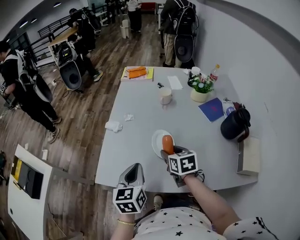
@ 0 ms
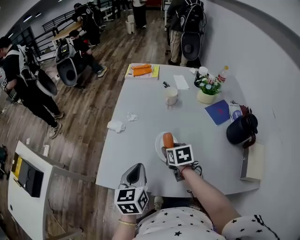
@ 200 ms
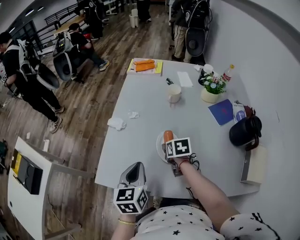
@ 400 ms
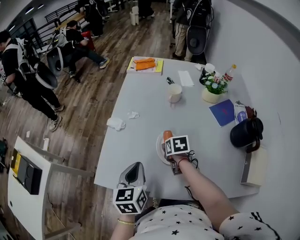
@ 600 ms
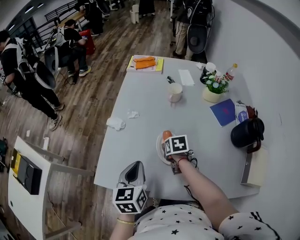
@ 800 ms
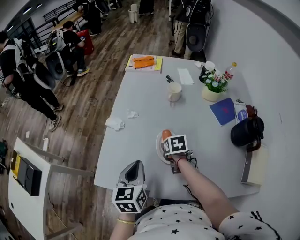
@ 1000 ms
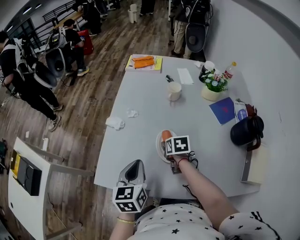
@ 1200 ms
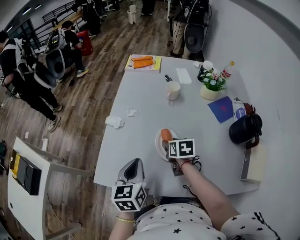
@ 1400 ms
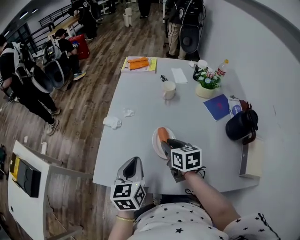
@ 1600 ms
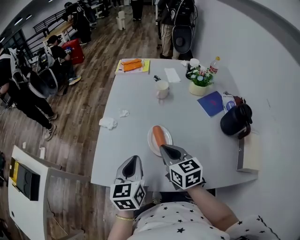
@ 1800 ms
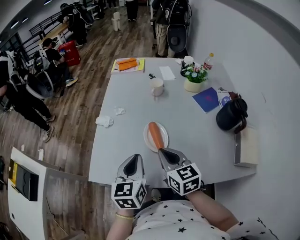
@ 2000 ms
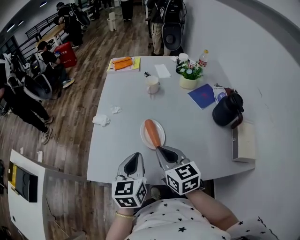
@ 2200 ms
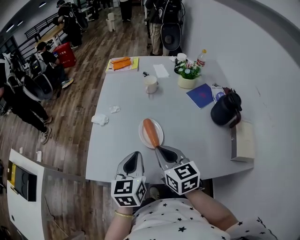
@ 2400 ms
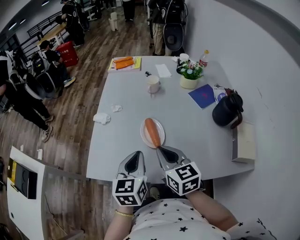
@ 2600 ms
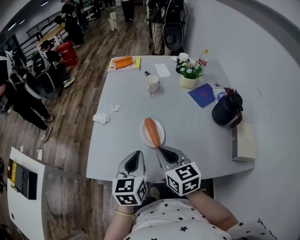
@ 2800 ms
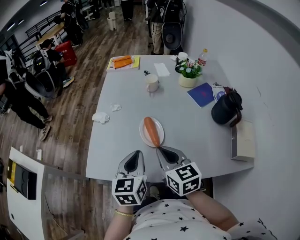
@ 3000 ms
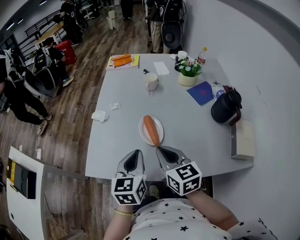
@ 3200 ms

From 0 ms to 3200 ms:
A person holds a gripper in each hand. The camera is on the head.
From 0 ms to 1600 ms: The right gripper goes downward and returns, approximately 10 cm each way, and closes up.
From 1600 ms to 3200 ms: The right gripper moves backward and upward, roughly 15 cm, and closes up, while the left gripper moves to the right, about 5 cm.

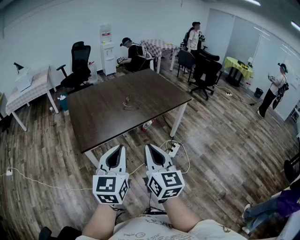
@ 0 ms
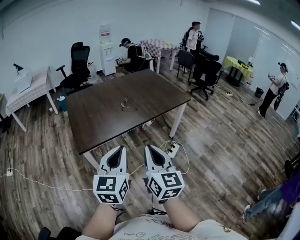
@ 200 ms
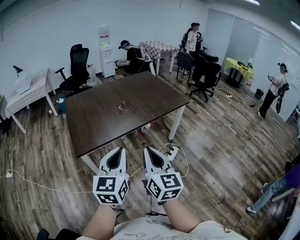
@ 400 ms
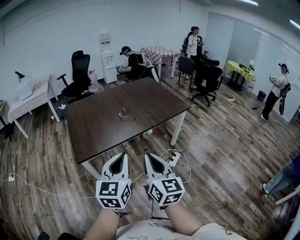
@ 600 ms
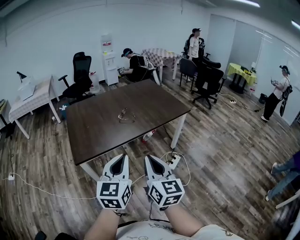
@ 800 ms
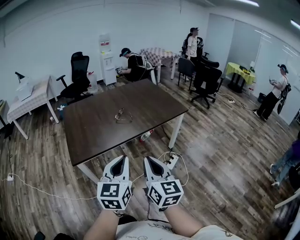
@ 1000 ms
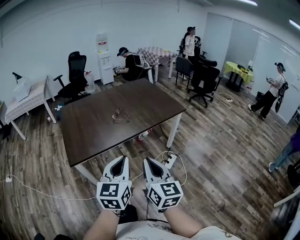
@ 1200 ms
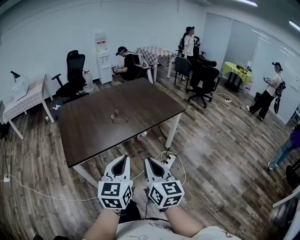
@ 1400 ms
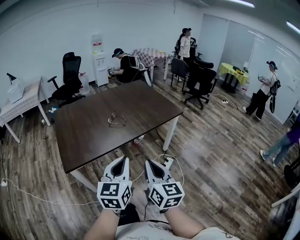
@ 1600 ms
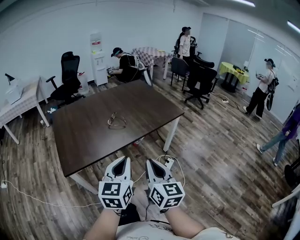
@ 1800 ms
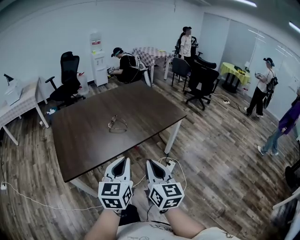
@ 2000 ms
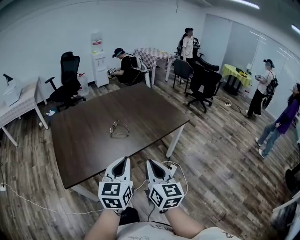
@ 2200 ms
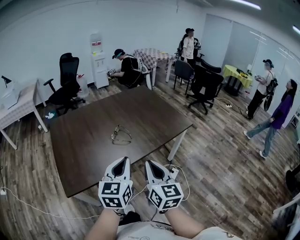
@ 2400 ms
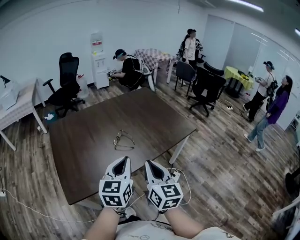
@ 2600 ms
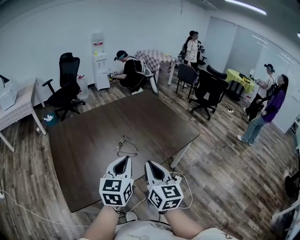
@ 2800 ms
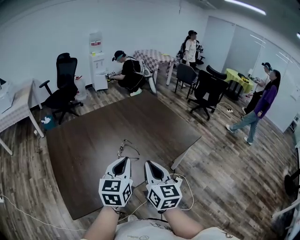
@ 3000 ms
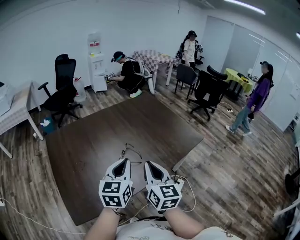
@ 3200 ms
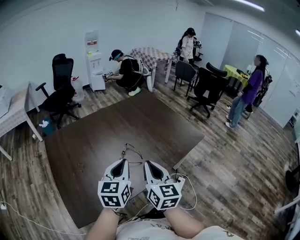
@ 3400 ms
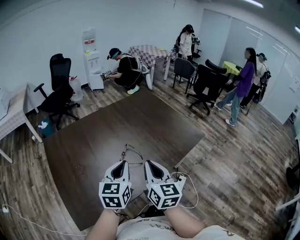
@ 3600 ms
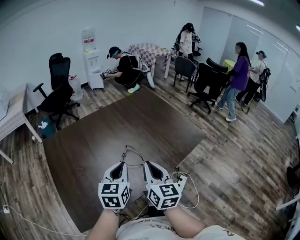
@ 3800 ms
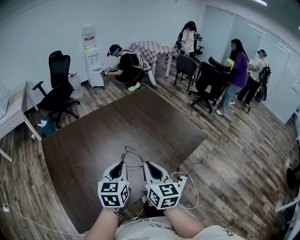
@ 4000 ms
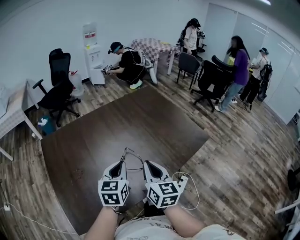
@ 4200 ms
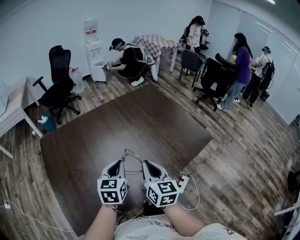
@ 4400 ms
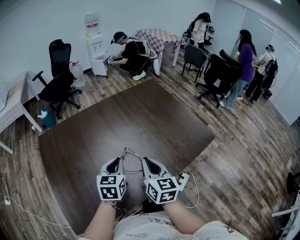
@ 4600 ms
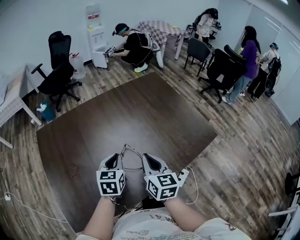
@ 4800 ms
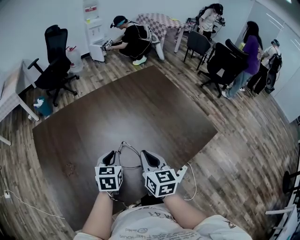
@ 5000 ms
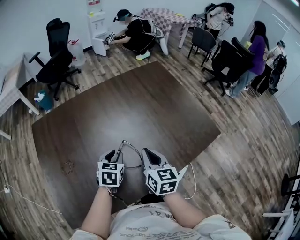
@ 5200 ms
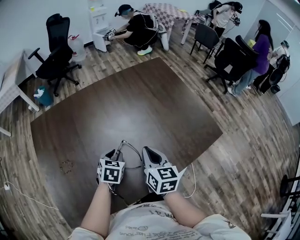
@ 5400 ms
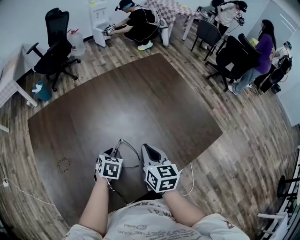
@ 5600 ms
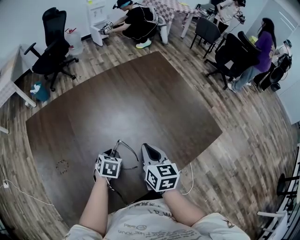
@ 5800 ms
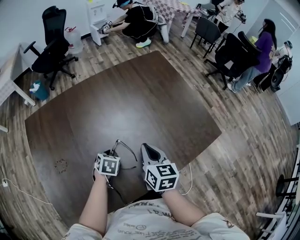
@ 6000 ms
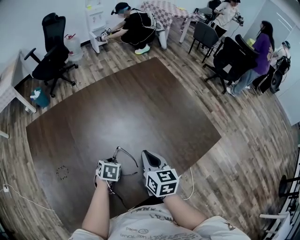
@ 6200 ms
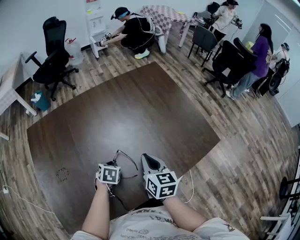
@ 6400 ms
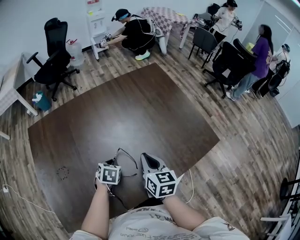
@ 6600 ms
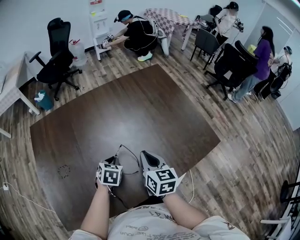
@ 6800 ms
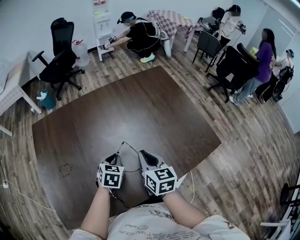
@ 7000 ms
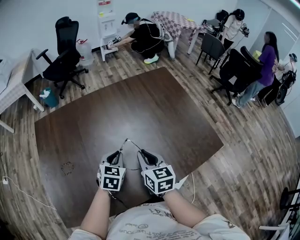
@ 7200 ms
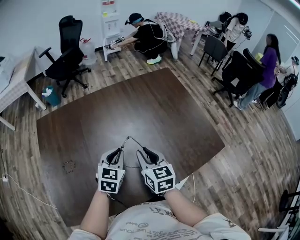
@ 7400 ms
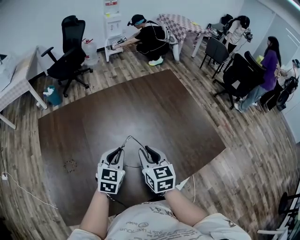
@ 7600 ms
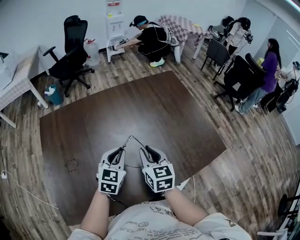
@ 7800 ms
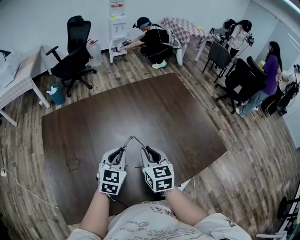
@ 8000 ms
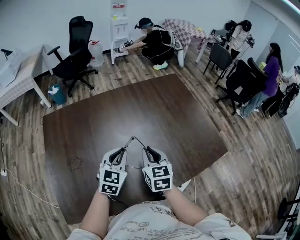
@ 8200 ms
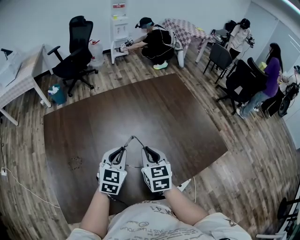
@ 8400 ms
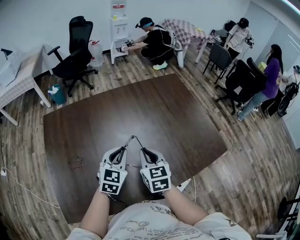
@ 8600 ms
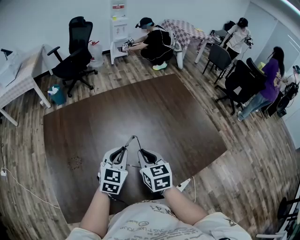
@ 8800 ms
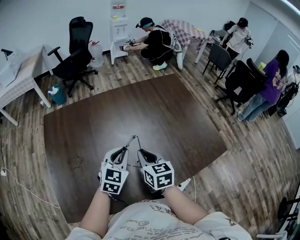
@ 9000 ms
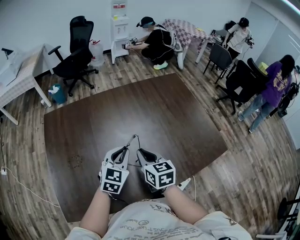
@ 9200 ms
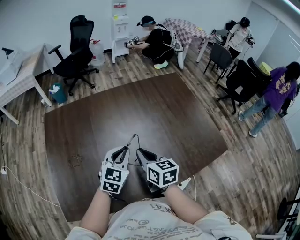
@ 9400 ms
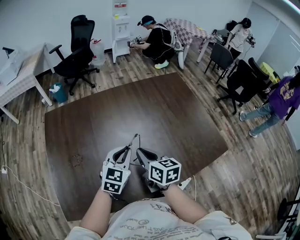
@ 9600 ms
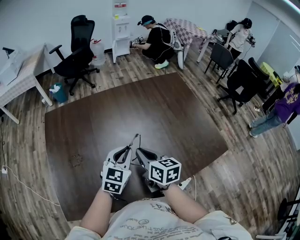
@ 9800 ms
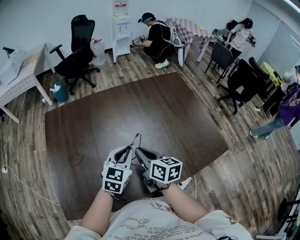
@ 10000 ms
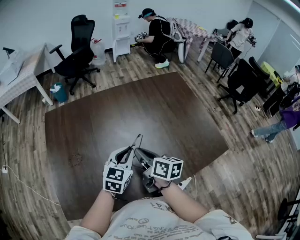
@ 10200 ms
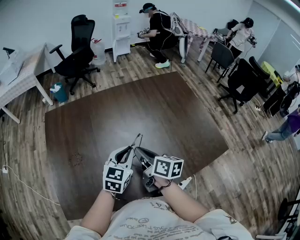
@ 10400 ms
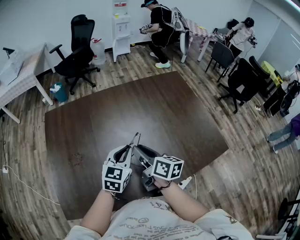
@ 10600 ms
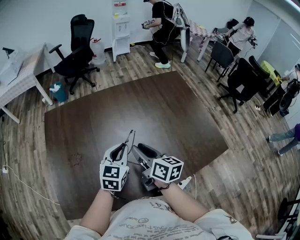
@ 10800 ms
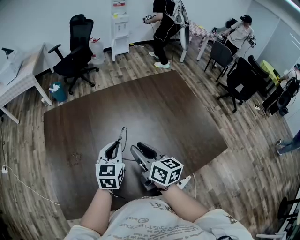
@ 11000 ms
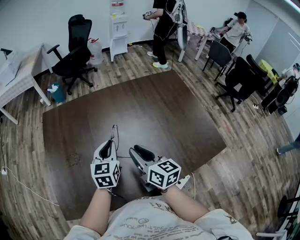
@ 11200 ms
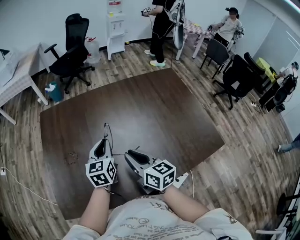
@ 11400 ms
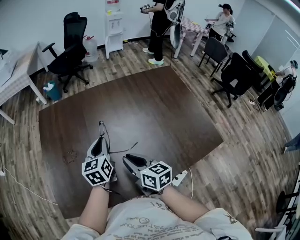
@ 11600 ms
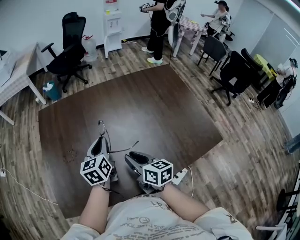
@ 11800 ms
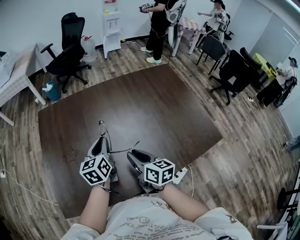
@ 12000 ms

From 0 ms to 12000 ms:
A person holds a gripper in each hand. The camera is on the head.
From 0 ms to 1600 ms: Both grippers move to the right and forward, approximately 15 cm.
From 1600 ms to 3000 ms: Both grippers move forward, some 35 cm.
From 3000 ms to 4400 ms: Both grippers travel together forward and downward, approximately 20 cm.
From 4400 ms to 6000 ms: The left gripper is displaced downward and forward by about 25 cm, tilts its fingers about 40 degrees downward, and opens its fingers. Meanwhile the right gripper is displaced forward and downward by some 15 cm.
From 6000 ms to 7600 ms: The right gripper ends up approximately 5 cm from where it was. The left gripper heads upward, covering about 15 cm, and angles its fingers upward, by about 40 degrees.
From 7600 ms to 9000 ms: The right gripper moves approximately 5 cm.
From 9000 ms to 10400 ms: The right gripper swivels some 40 degrees.
From 10400 ms to 12000 ms: The right gripper ends up some 5 cm from where it was, while the left gripper is displaced to the left by roughly 10 cm, and changes its angle by some 30 degrees.

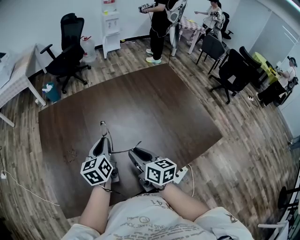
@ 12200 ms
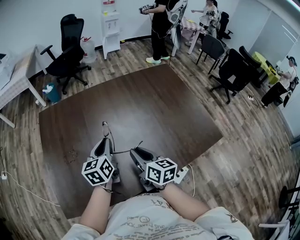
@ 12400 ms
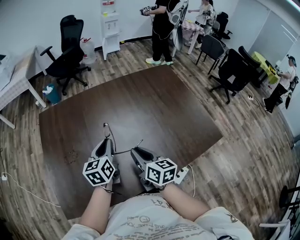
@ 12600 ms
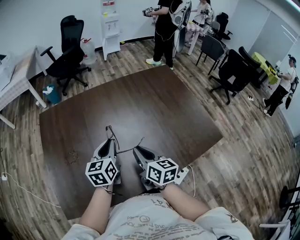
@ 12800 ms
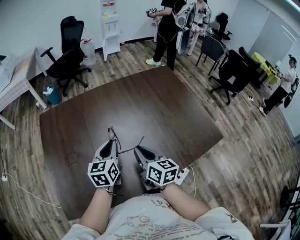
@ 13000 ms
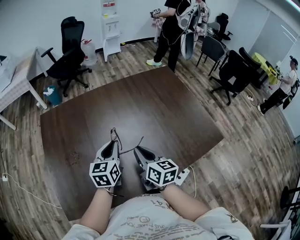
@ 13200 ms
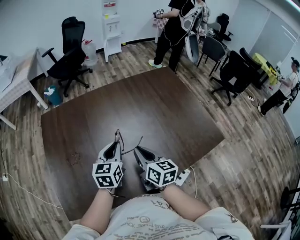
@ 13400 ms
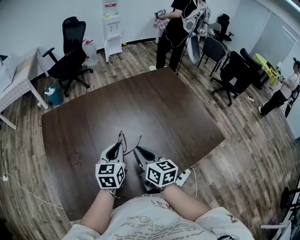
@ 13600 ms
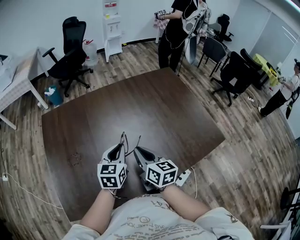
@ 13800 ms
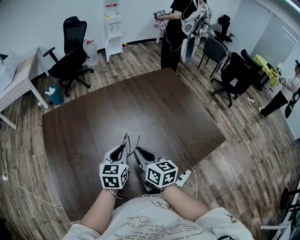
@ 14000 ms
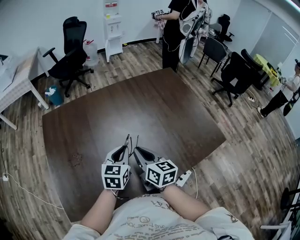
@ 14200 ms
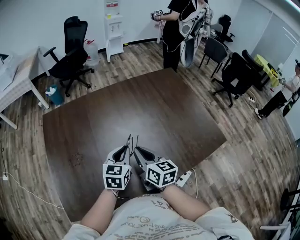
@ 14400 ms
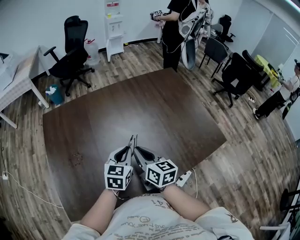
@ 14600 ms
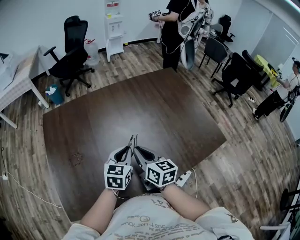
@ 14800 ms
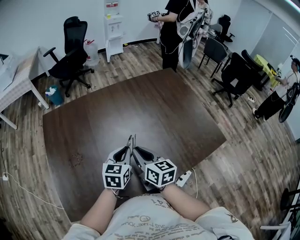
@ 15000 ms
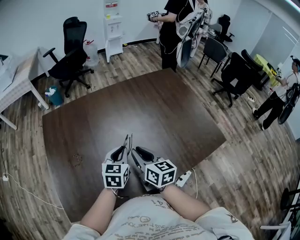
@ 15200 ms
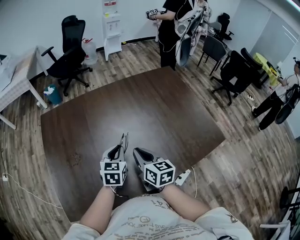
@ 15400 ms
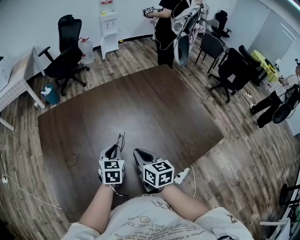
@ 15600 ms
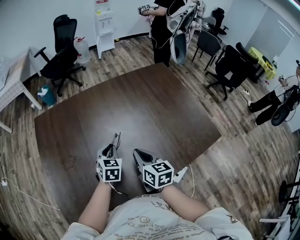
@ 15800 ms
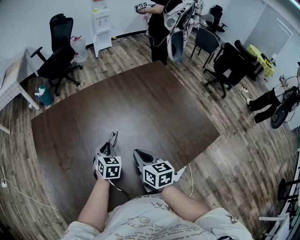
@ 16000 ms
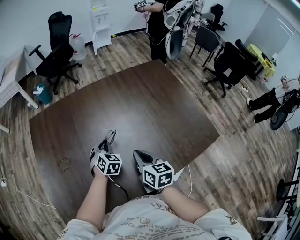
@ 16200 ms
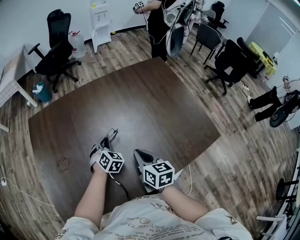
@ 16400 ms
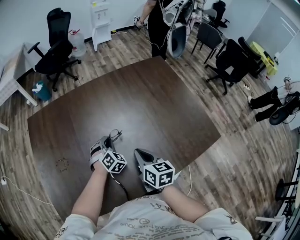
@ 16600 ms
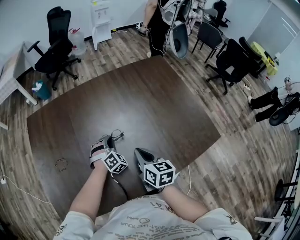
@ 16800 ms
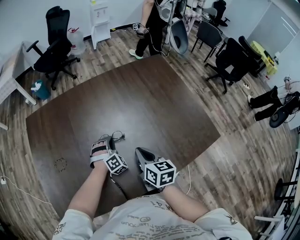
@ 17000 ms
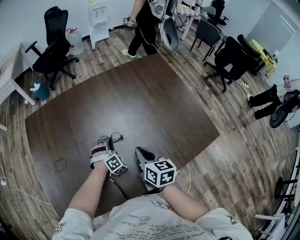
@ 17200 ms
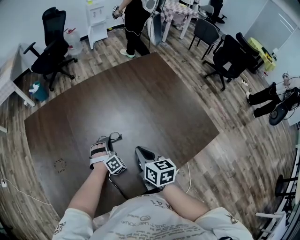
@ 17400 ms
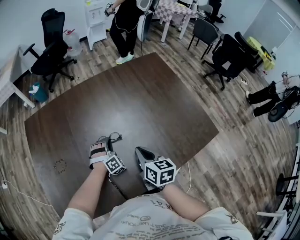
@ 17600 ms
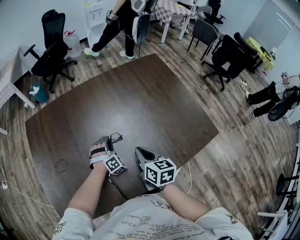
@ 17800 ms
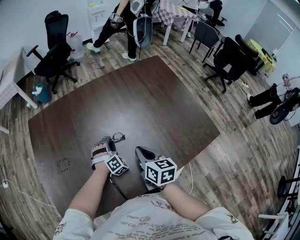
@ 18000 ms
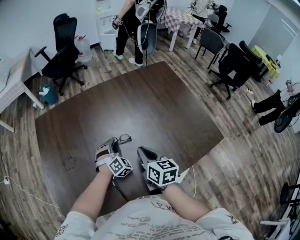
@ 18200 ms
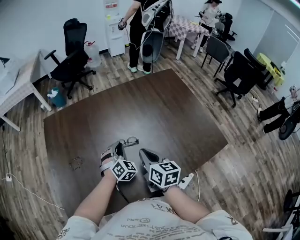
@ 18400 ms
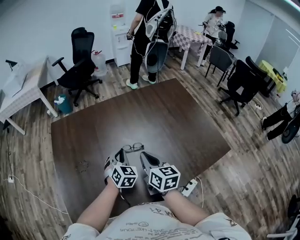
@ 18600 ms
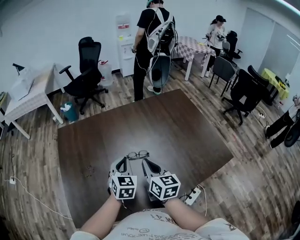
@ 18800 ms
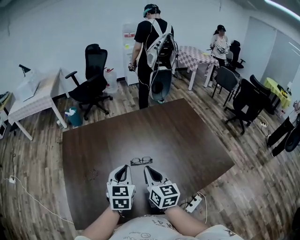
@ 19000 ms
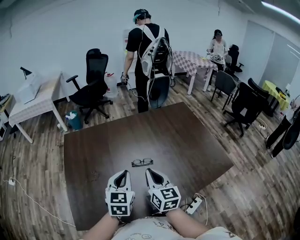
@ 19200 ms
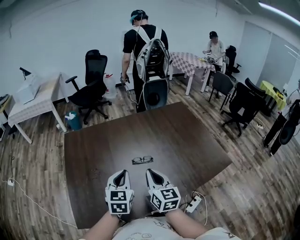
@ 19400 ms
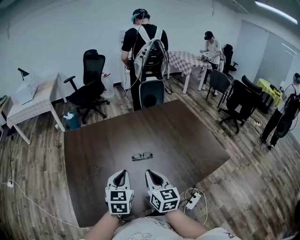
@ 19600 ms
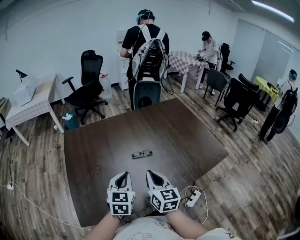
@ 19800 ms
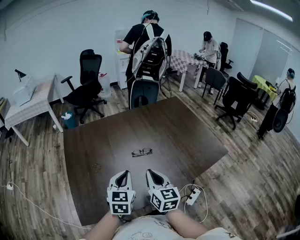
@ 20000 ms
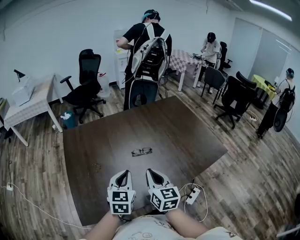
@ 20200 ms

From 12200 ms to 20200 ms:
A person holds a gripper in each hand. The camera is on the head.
From 12200 ms to 13800 ms: The left gripper goes about 5 cm to the right, and swivels some 20 degrees.
From 13800 ms to 15400 ms: The grippers move only a little.
From 15400 ms to 17000 ms: The left gripper travels downward and forward by about 15 cm, and rotates around the line of its fingers by about 60 degrees, clockwise from behind, while the right gripper is displaced to the right by about 10 cm.
From 17000 ms to 18600 ms: The left gripper heads upward, to the left and backward, covering approximately 15 cm, and rotates approximately 40 degrees. The right gripper moves upward and to the left, roughly 10 cm.
From 18600 ms to 20200 ms: The left gripper moves backward, upward and to the left, roughly 20 cm, and changes its angle by about 30 degrees. The right gripper shifts roughly 15 cm backward and to the left.
